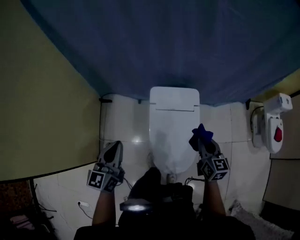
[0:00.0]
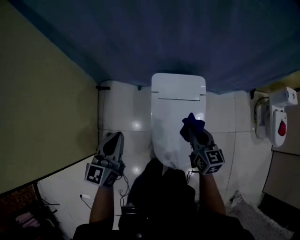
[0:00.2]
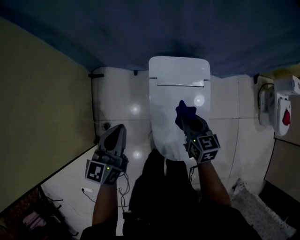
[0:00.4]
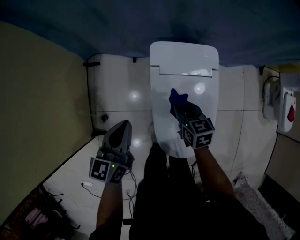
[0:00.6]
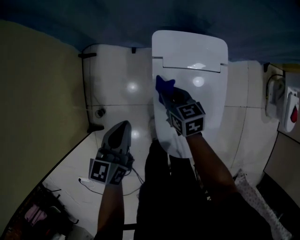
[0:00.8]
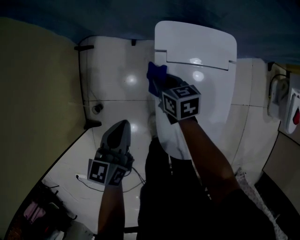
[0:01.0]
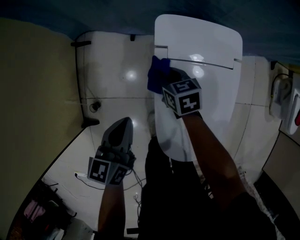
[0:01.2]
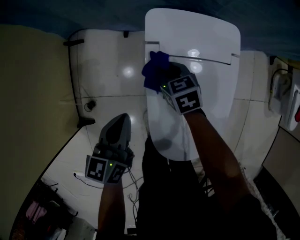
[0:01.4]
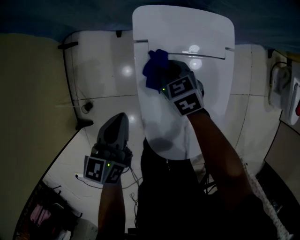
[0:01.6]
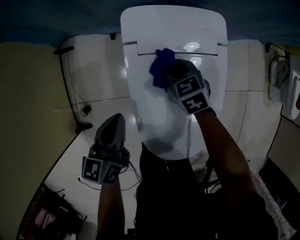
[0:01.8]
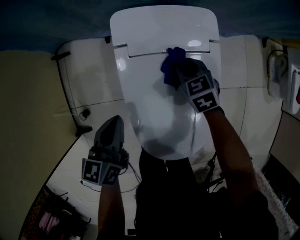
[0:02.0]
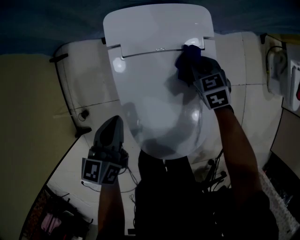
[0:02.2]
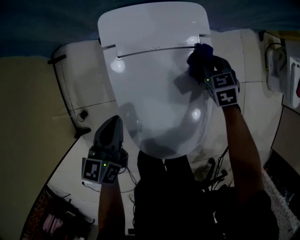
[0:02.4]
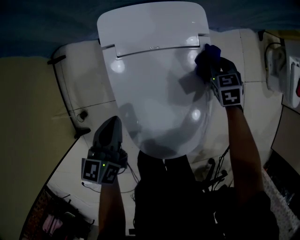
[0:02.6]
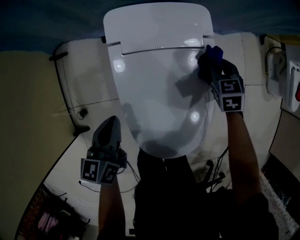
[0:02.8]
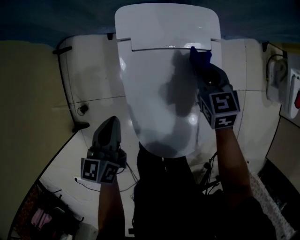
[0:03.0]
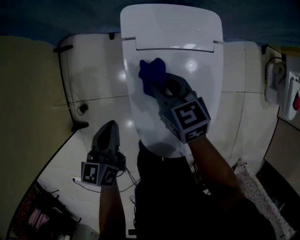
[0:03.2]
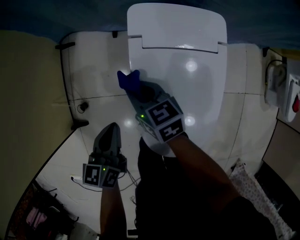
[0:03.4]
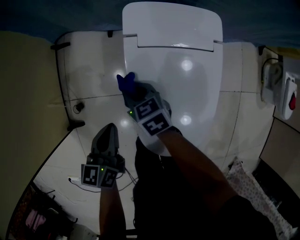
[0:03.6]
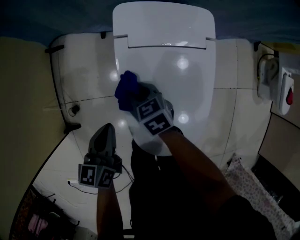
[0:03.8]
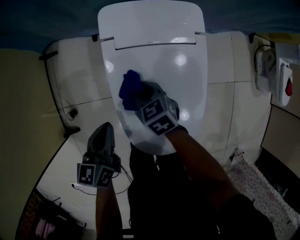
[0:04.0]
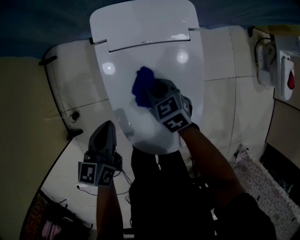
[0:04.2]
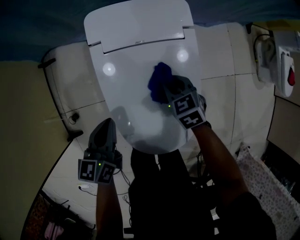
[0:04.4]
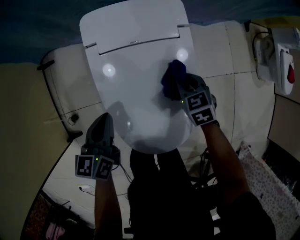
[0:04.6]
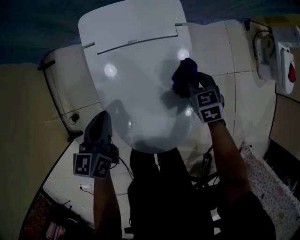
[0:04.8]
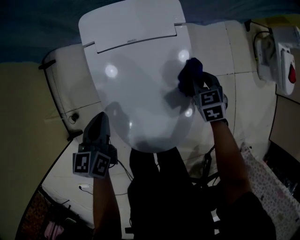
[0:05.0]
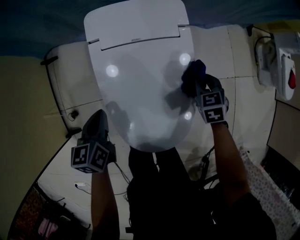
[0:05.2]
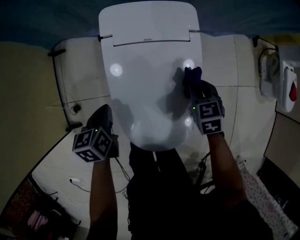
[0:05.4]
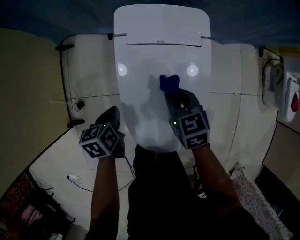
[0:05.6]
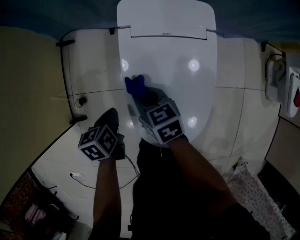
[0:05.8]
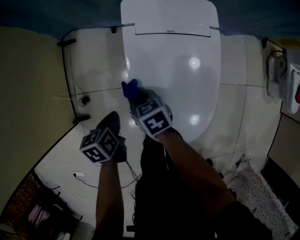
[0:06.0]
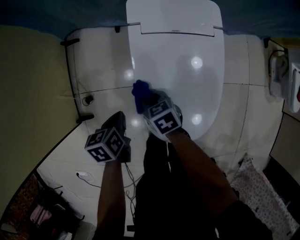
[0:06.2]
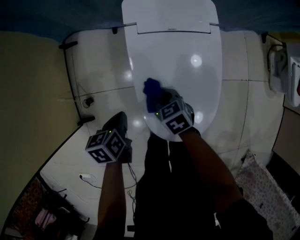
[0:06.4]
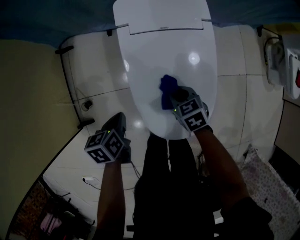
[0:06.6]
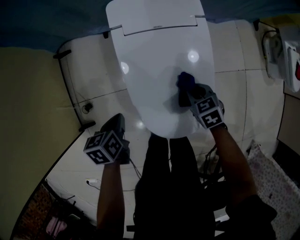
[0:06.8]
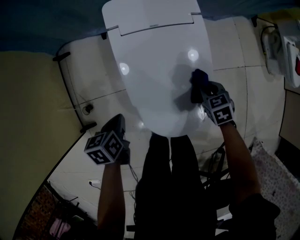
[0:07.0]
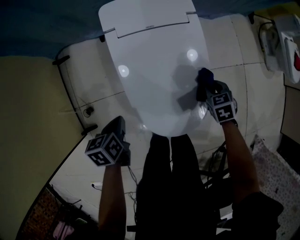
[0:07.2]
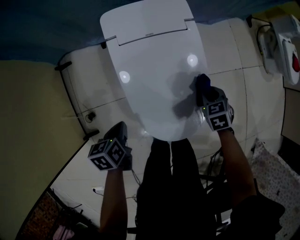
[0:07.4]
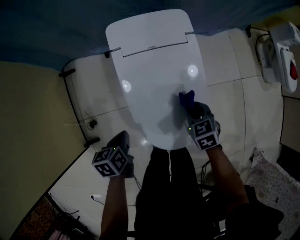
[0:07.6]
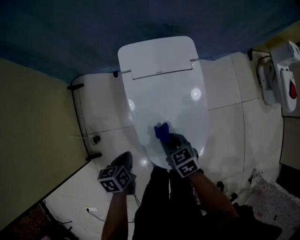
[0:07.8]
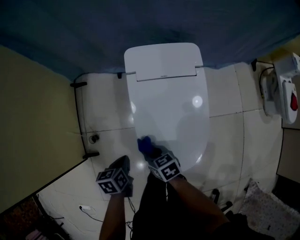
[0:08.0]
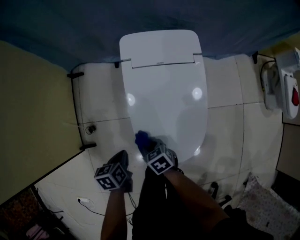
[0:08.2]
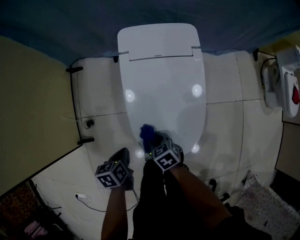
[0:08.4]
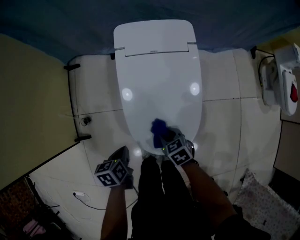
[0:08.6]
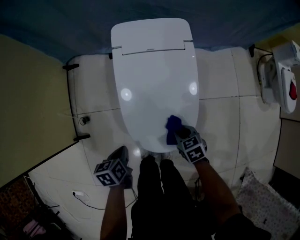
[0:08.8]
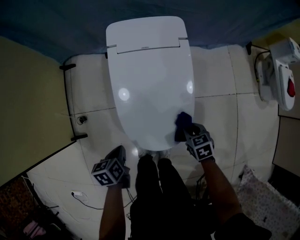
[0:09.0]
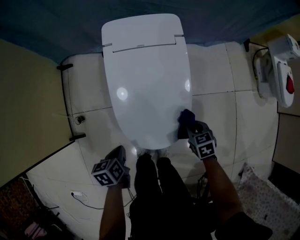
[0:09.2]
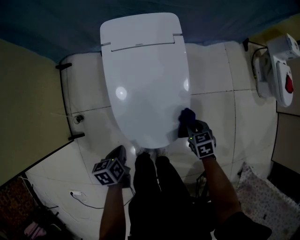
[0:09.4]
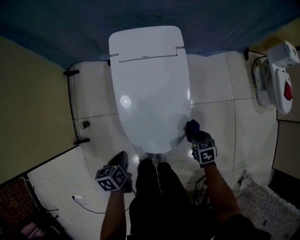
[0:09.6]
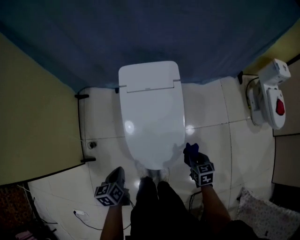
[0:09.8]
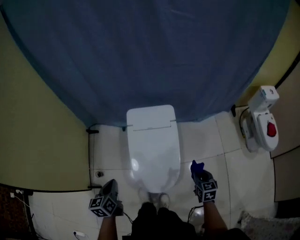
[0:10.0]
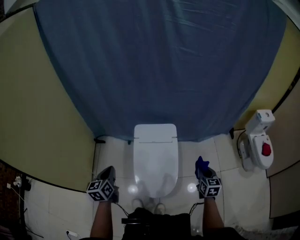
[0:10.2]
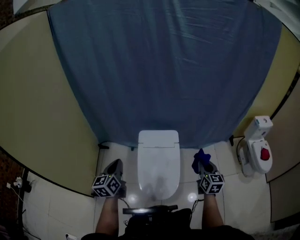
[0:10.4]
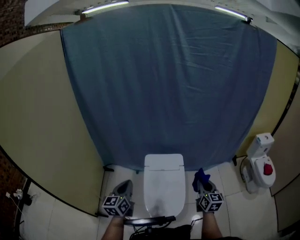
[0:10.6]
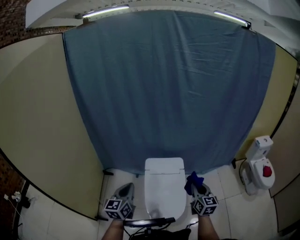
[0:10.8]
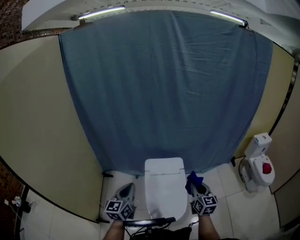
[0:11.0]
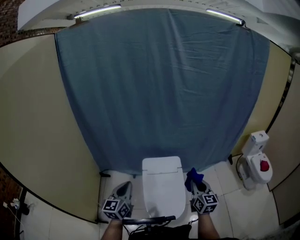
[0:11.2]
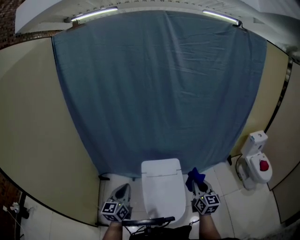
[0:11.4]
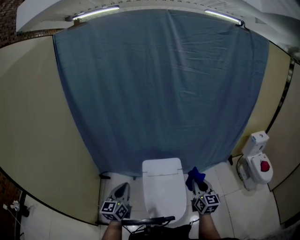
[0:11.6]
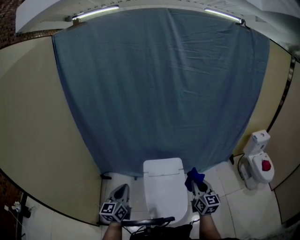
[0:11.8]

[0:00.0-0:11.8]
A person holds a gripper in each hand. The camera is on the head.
0:00.0 to 0:01.4: The left gripper goes some 35 cm downward, and rotates roughly 20 degrees. The right gripper shifts some 50 cm downward, forward and to the left, and rotates about 30 degrees.
0:01.4 to 0:03.0: The right gripper shifts some 20 cm to the right.
0:03.0 to 0:04.4: The left gripper moves some 5 cm. The right gripper travels downward and backward by approximately 10 cm, and reaches roughly 25 cm to the left, then returns.
0:04.4 to 0:06.0: The right gripper reaches some 10 cm upward, then returns, and turns by roughly 20 degrees. The left gripper shifts by approximately 15 cm, and turns by roughly 30 degrees.
0:06.0 to 0:07.4: The right gripper moves roughly 35 cm, and rotates approximately 40 degrees.
0:07.4 to 0:08.8: The left gripper shifts by about 10 cm. Meanwhile the right gripper turns by roughly 20 degrees.
0:08.8 to 0:10.4: Both grippers travel together upward, about 50 cm. The right gripper tilts its fingers some 40 degrees upward. Meanwhile the left gripper points its fingers about 50 degrees further upward.
0:10.4 to 0:11.8: The right gripper travels to the left and upward by about 15 cm.

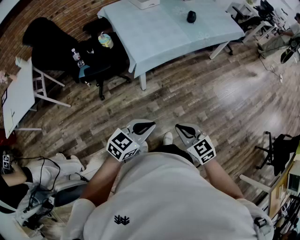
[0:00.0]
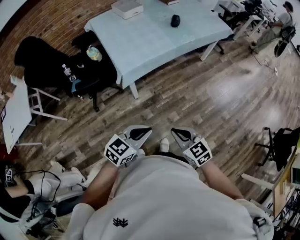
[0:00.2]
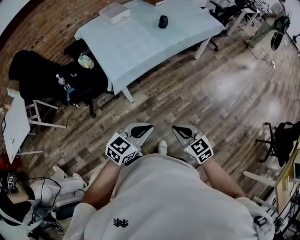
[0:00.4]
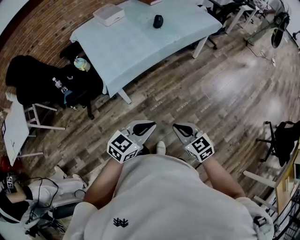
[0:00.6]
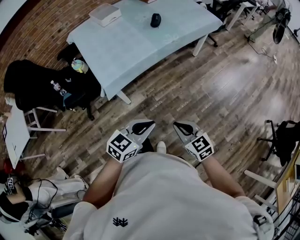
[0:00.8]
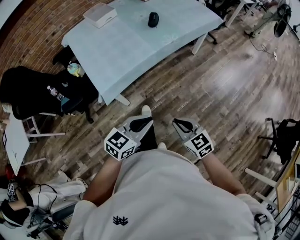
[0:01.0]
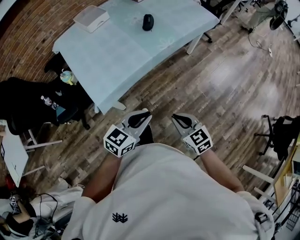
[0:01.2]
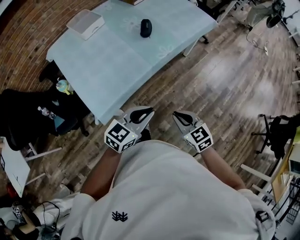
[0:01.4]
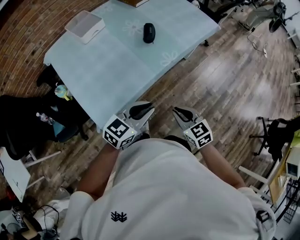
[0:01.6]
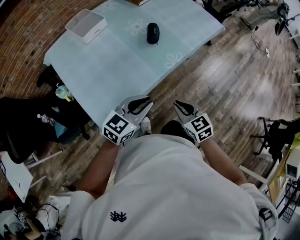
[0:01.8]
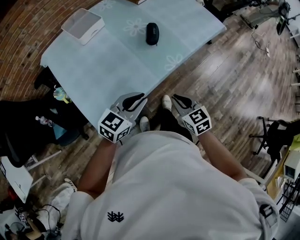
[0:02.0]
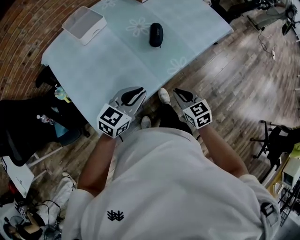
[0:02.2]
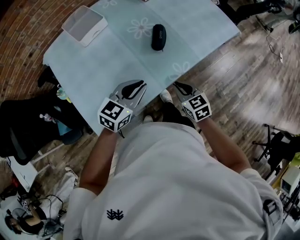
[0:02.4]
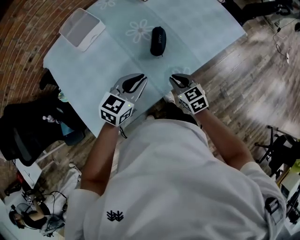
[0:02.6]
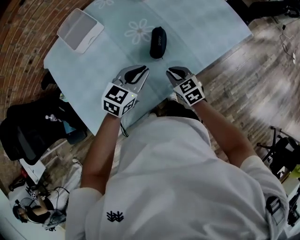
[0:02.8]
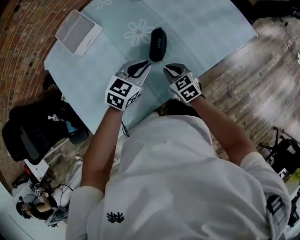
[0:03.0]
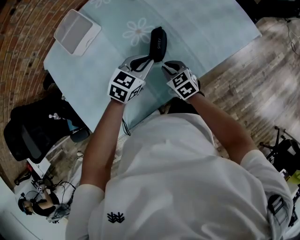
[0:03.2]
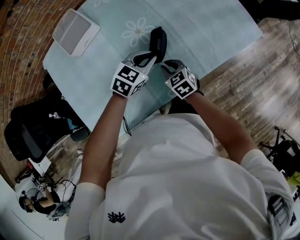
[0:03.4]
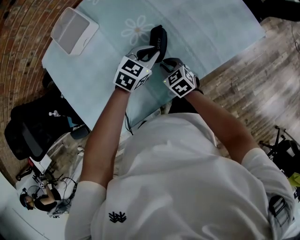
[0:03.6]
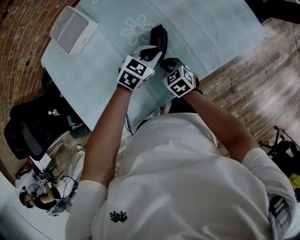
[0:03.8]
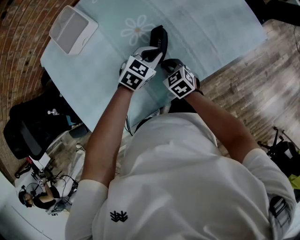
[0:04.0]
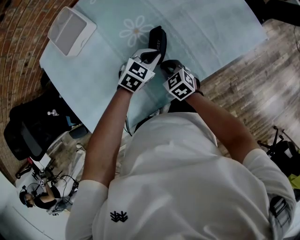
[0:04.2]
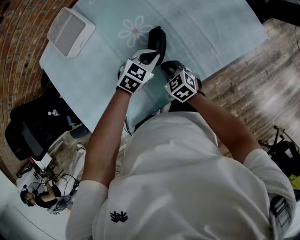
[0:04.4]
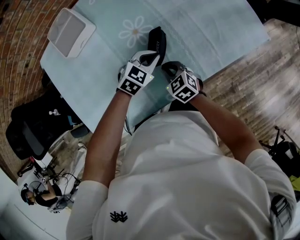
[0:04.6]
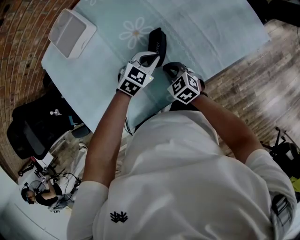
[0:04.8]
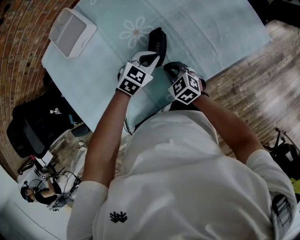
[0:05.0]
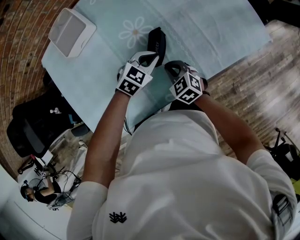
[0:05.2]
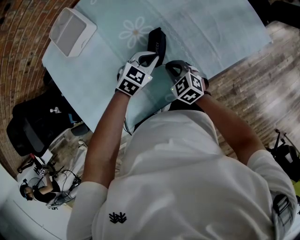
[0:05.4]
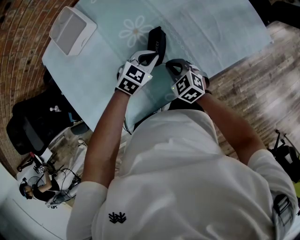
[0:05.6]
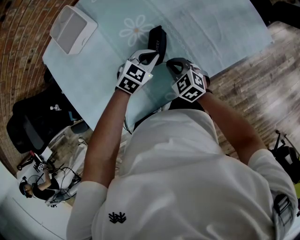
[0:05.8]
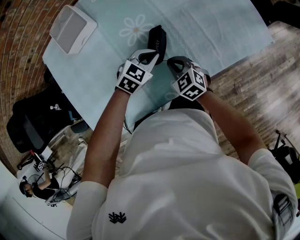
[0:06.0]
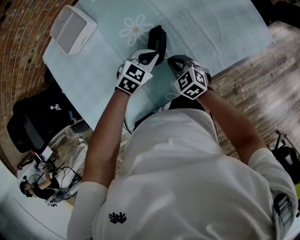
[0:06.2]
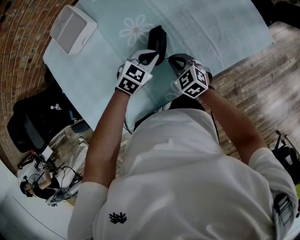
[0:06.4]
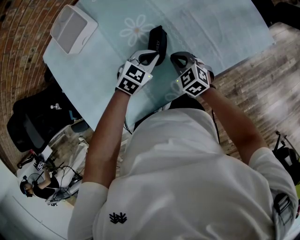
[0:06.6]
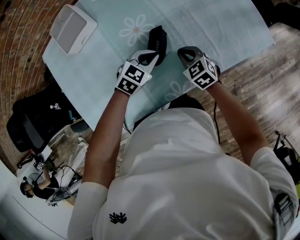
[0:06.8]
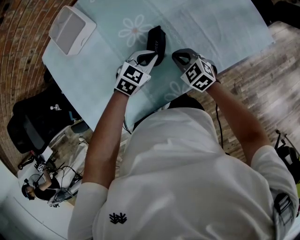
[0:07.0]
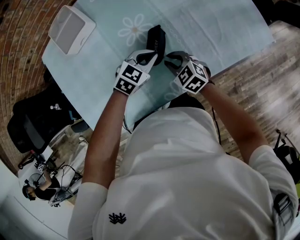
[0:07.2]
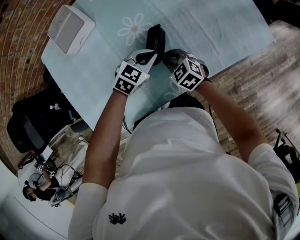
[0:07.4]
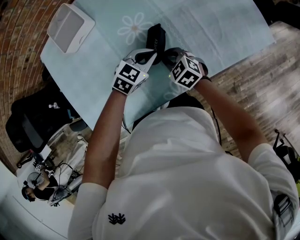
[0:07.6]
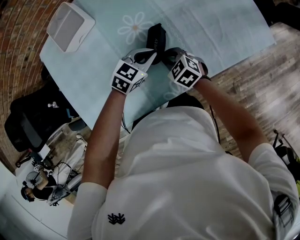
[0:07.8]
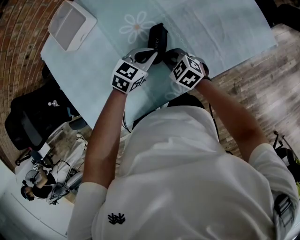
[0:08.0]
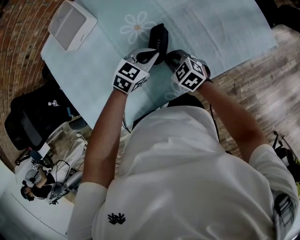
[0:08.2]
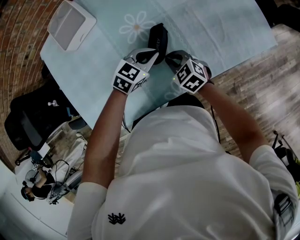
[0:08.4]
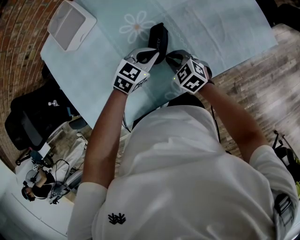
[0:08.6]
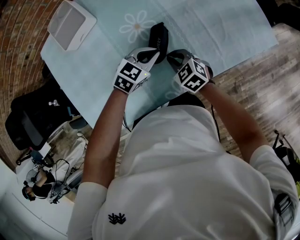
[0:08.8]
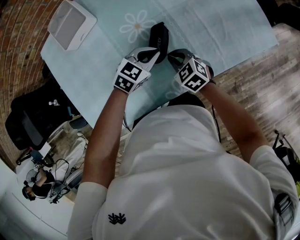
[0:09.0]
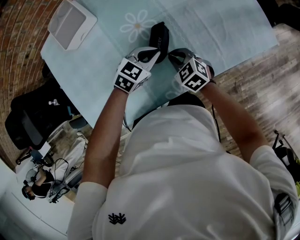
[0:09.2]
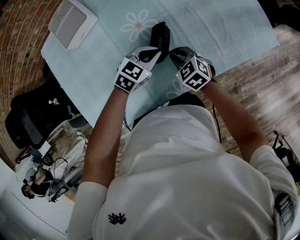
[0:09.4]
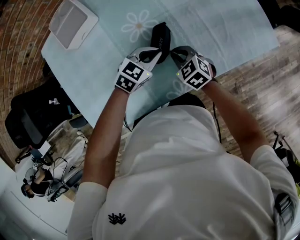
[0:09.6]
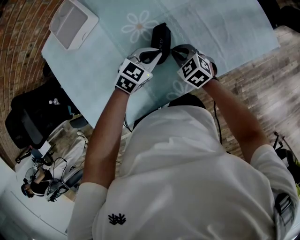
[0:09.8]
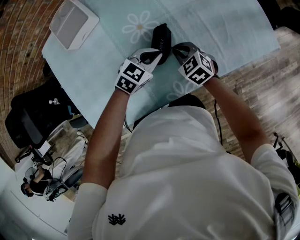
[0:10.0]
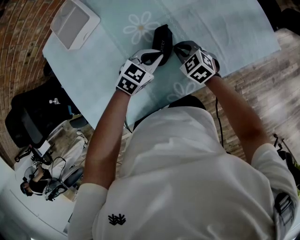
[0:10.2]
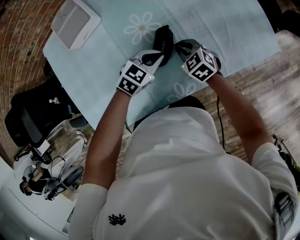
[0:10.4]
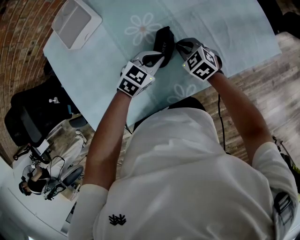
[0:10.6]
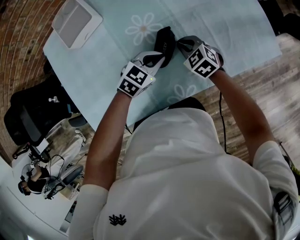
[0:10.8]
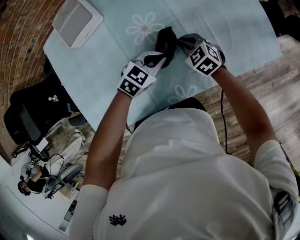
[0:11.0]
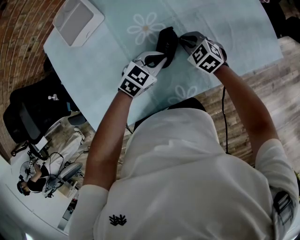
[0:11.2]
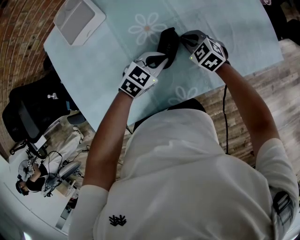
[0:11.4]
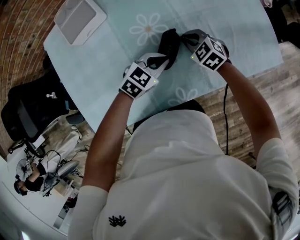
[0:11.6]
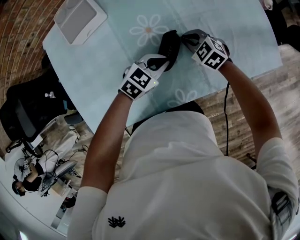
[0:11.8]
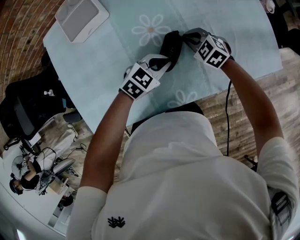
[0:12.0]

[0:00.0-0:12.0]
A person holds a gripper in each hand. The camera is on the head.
0:00.0 to 0:01.6: The pair of grippers is taken forward, approximately 40 cm.
0:01.6 to 0:03.0: The two grippers go about 40 cm forward. The left gripper rotates some 20 degrees.
0:03.0 to 0:04.4: The right gripper shifts by some 5 cm; the left gripper travels downward and forward by some 10 cm.
0:04.4 to 0:06.0: The grippers make only small movements.
0:07.6 to 0:09.0: The grippers make only small movements.
0:09.0 to 0:10.4: The right gripper shifts about 5 cm forward.
0:10.4 to 0:12.0: The right gripper heads forward, covering roughly 5 cm.
